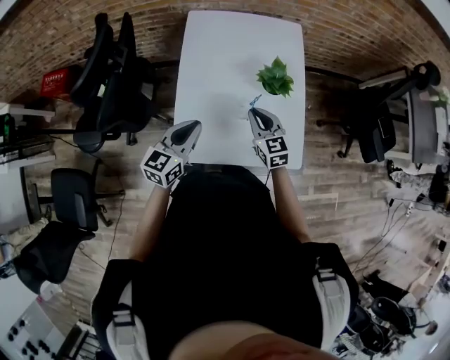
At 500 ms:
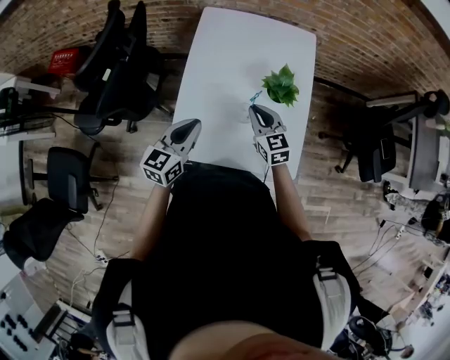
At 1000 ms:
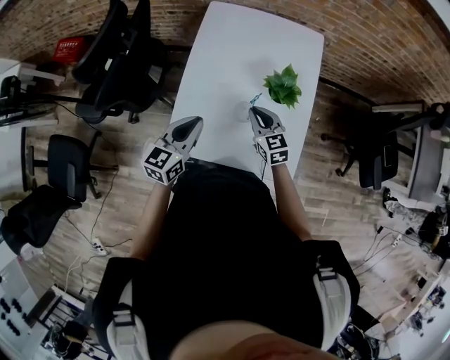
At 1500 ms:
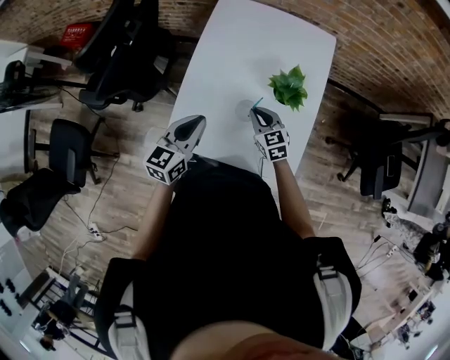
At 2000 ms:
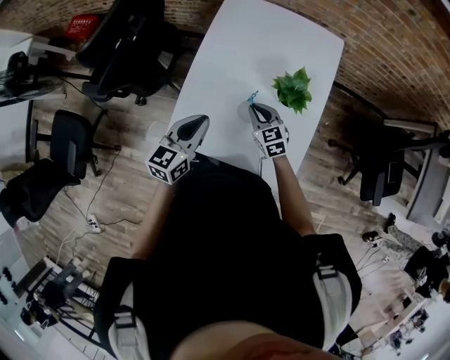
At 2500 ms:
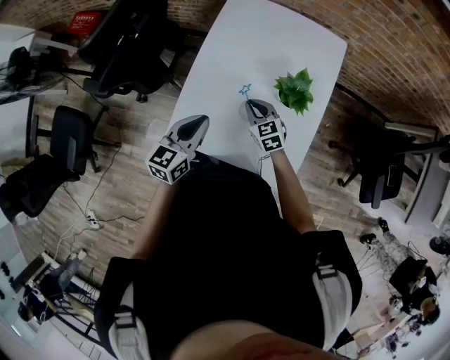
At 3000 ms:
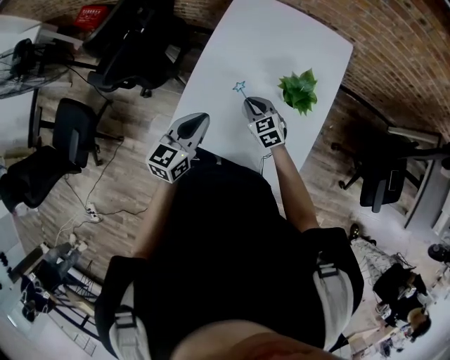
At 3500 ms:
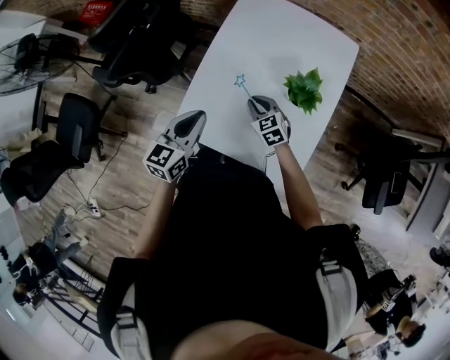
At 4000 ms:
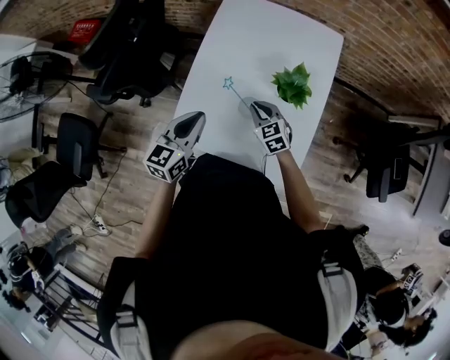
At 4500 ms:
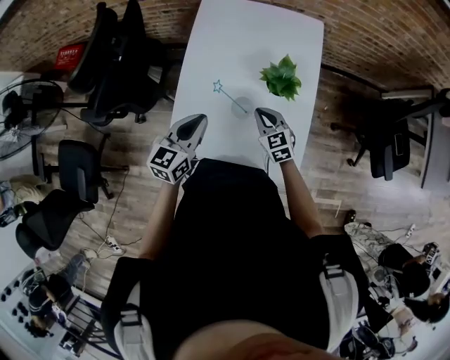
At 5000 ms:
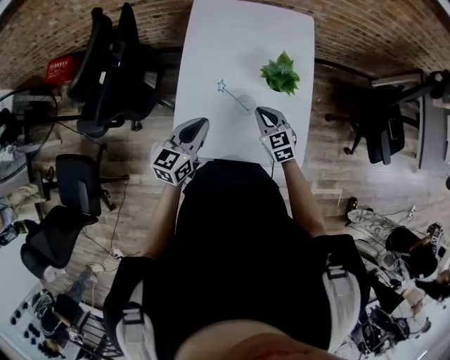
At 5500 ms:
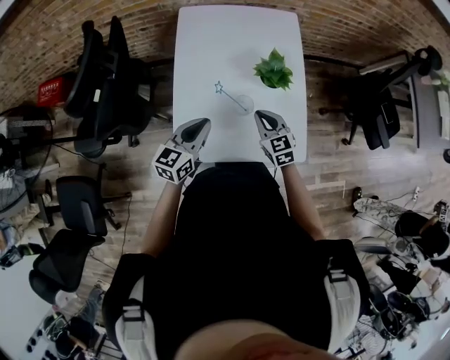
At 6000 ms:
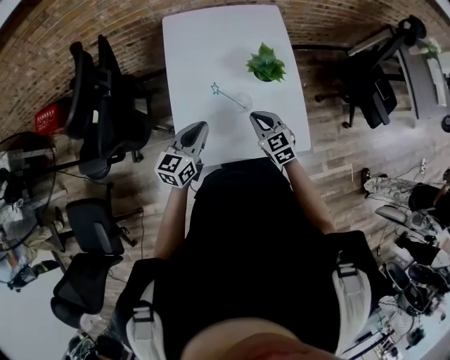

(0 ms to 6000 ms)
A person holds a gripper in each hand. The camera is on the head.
0 ms - 2000 ms: The right gripper is displaced downward by approximately 10 cm, and rotates some 20 degrees.
2000 ms - 4000 ms: The grippers make only small movements.
4000 ms - 6000 ms: The left gripper swivels some 20 degrees. The right gripper is displaced backward and upward by some 10 cm, and changes its angle by approximately 20 degrees.

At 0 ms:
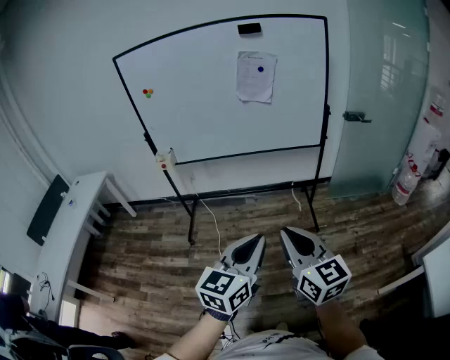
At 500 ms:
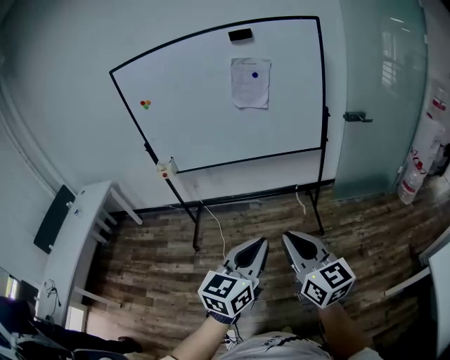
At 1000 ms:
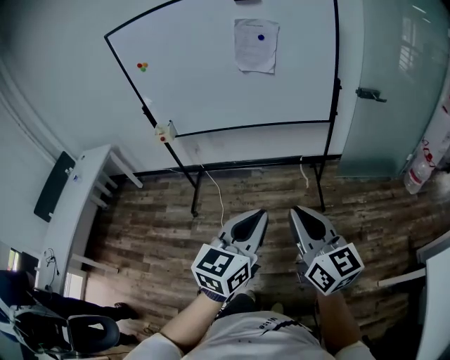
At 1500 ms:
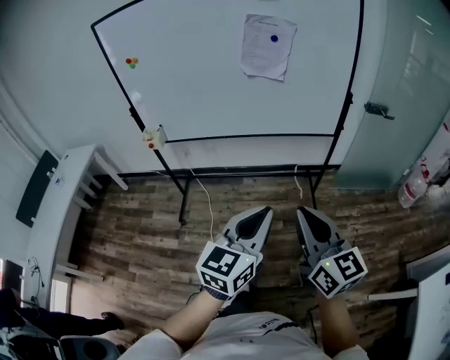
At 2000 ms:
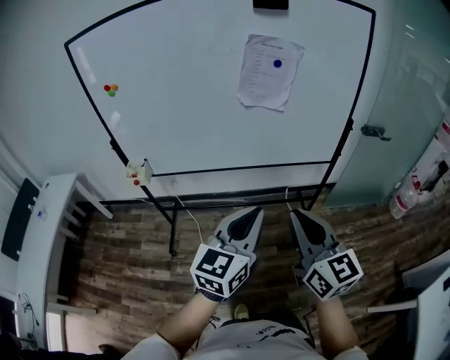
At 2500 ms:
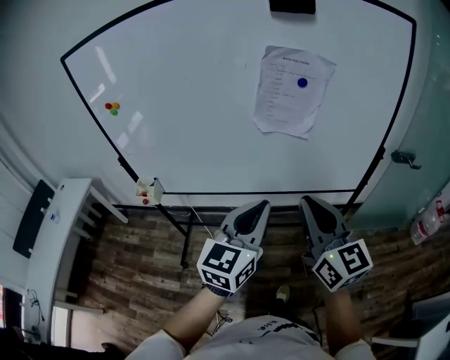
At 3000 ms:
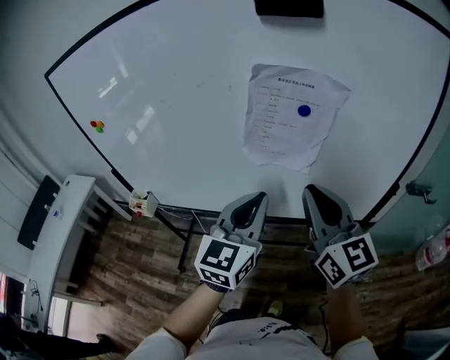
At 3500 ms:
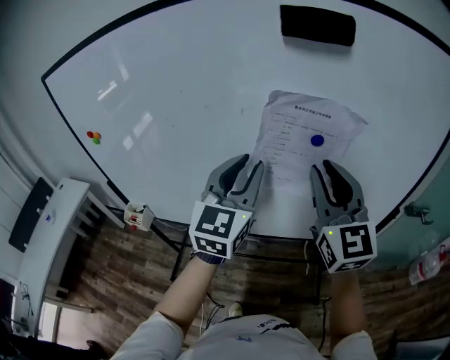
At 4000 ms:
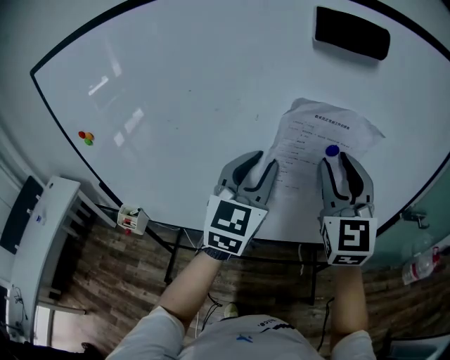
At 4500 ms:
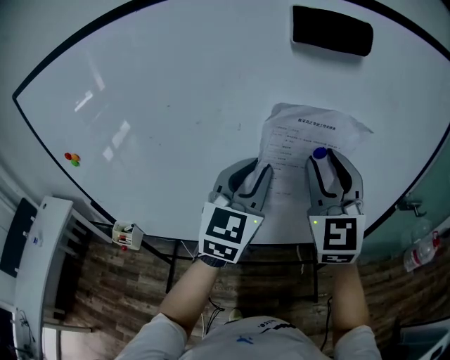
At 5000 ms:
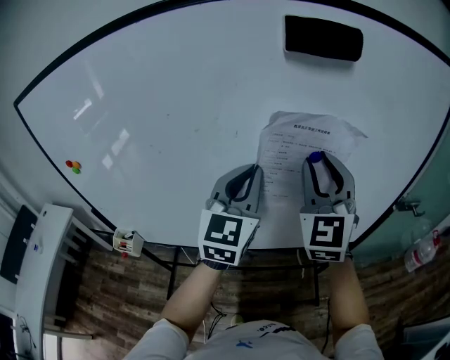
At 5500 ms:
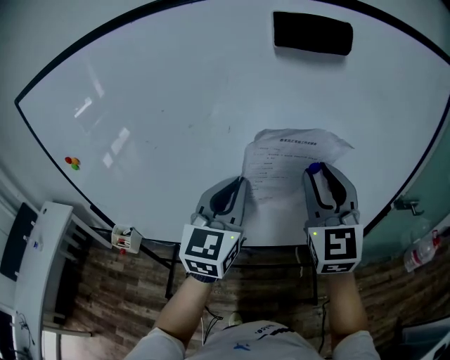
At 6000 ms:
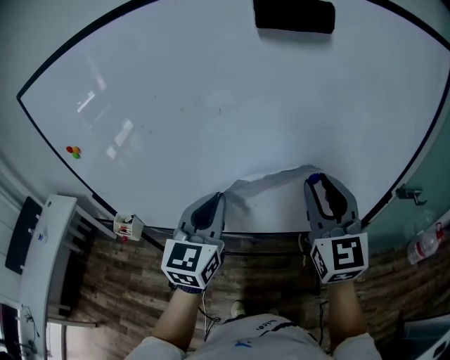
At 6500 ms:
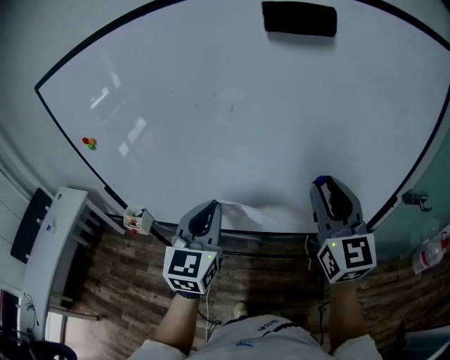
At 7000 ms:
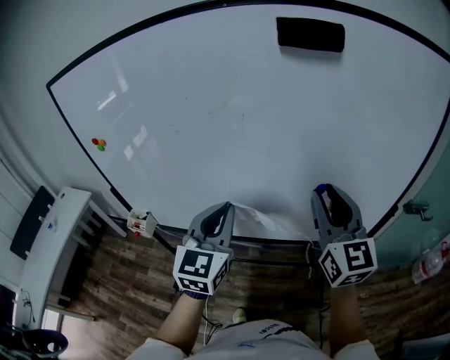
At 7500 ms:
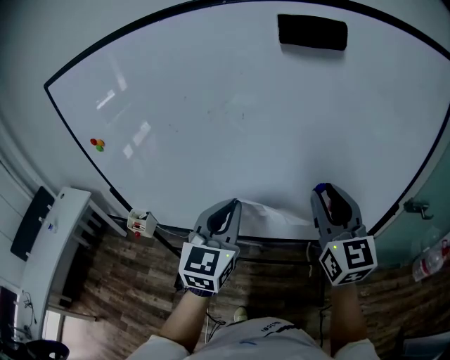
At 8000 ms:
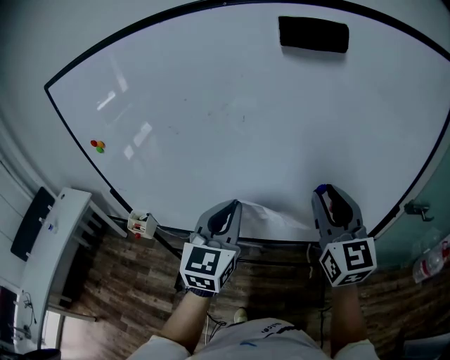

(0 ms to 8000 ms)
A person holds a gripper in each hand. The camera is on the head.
0 ms - 2000 ms: The two grippers go about 35 cm forward.
2000 ms - 4000 ms: The two grippers travel together, forward, roughly 50 cm. The right gripper turns by approximately 30 degrees, and opens. Meanwhile the left gripper rotates some 30 degrees, and opens up.
4000 ms - 6000 ms: The left gripper moves backward and downward, about 10 cm, and closes up. The right gripper travels backward by roughly 5 cm.
6000 ms - 8000 ms: The grippers make only small movements.

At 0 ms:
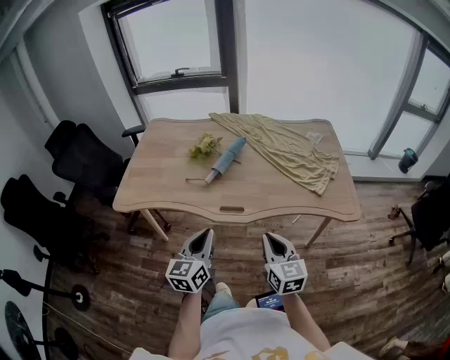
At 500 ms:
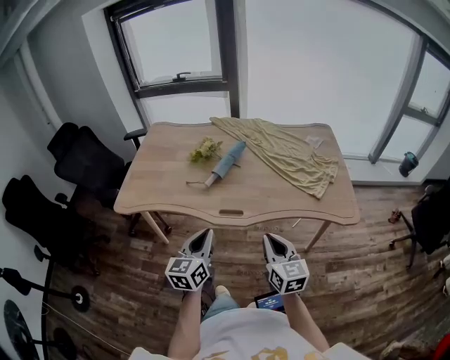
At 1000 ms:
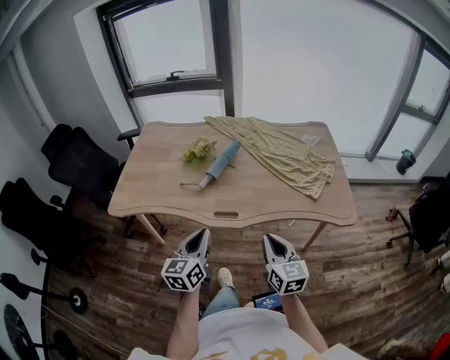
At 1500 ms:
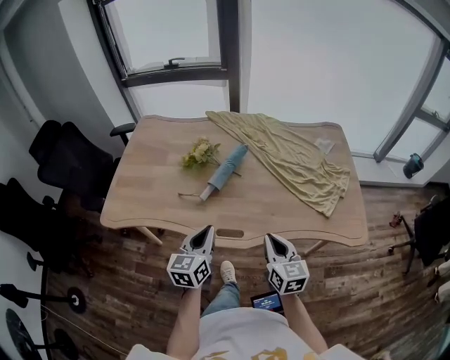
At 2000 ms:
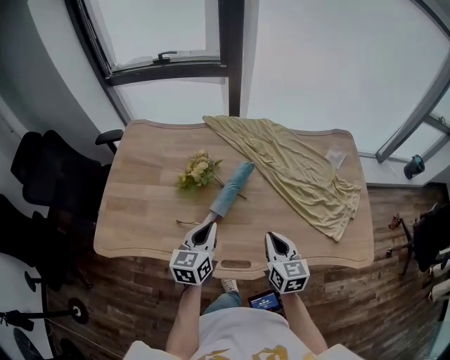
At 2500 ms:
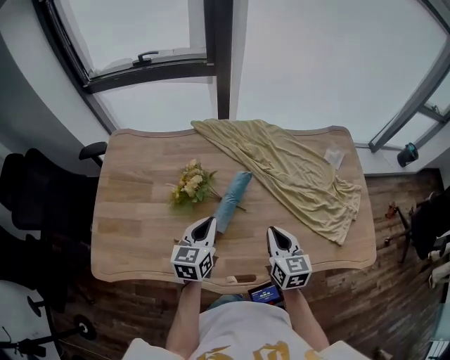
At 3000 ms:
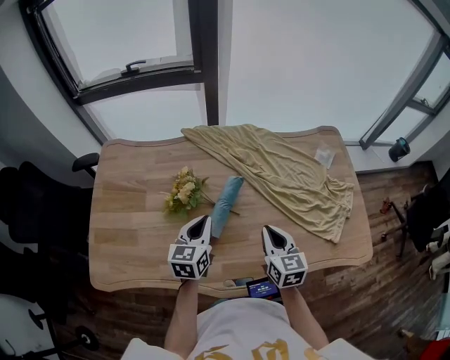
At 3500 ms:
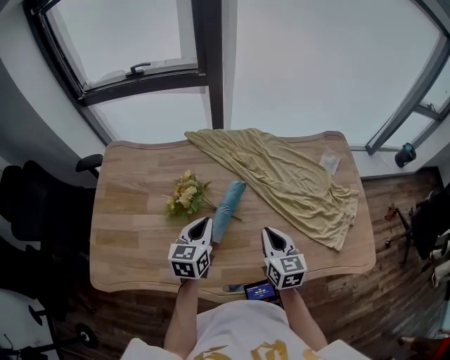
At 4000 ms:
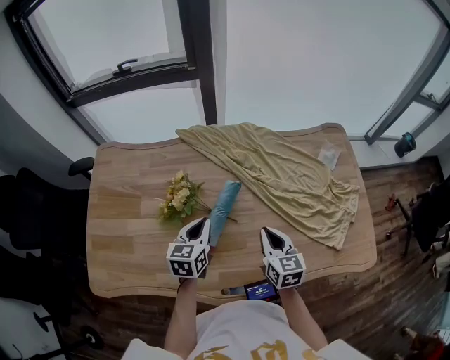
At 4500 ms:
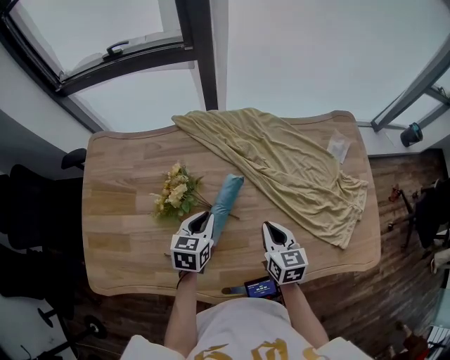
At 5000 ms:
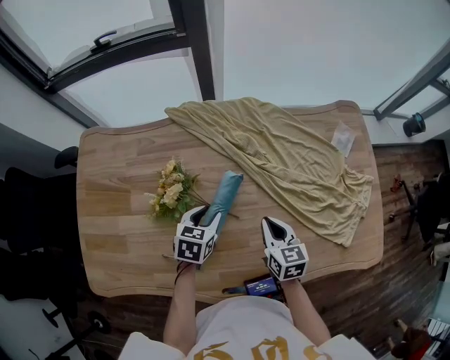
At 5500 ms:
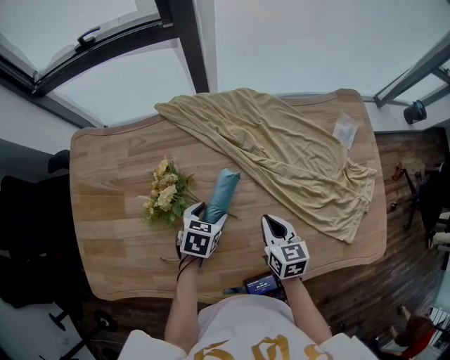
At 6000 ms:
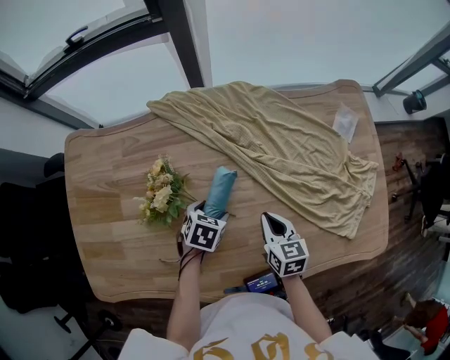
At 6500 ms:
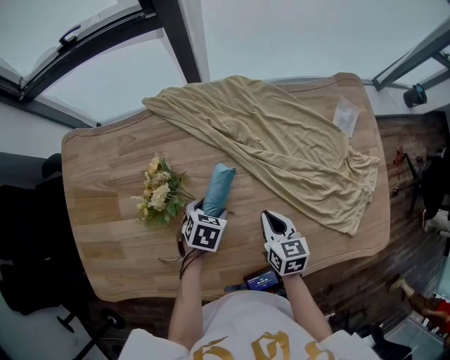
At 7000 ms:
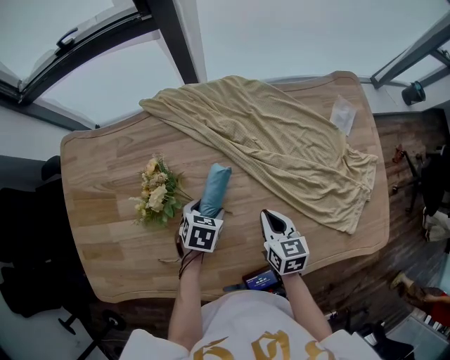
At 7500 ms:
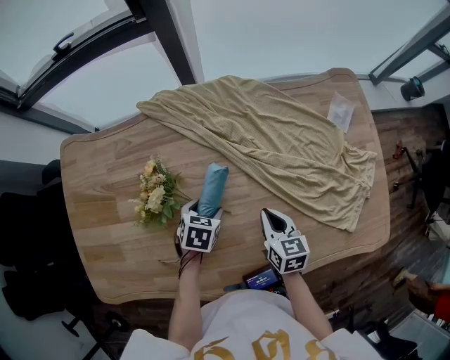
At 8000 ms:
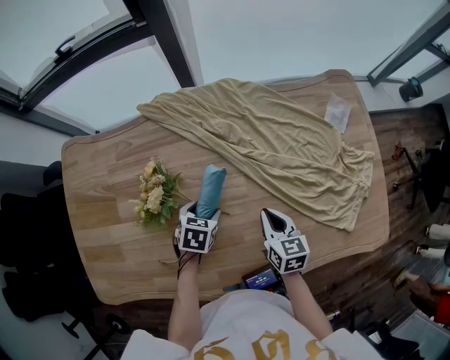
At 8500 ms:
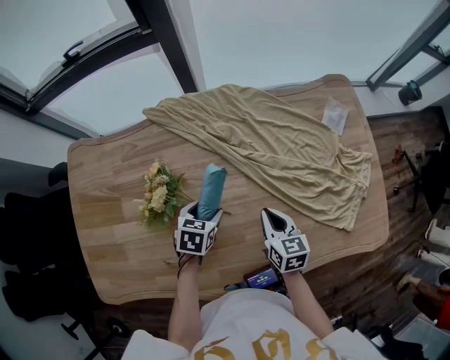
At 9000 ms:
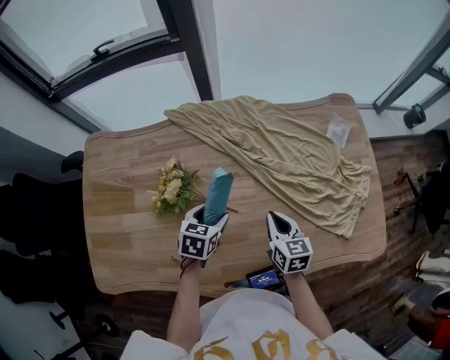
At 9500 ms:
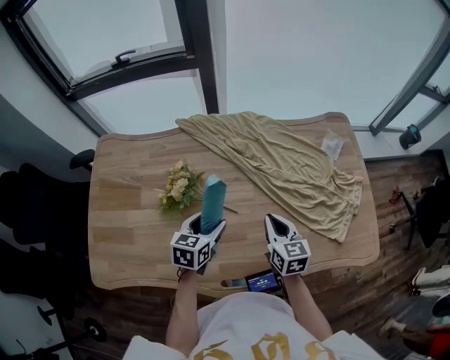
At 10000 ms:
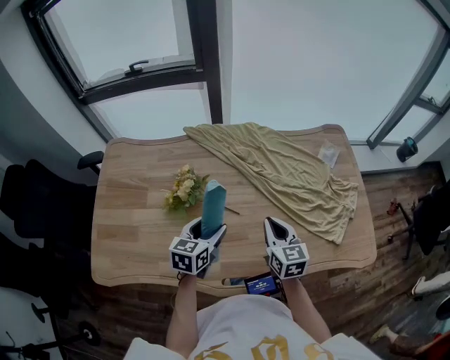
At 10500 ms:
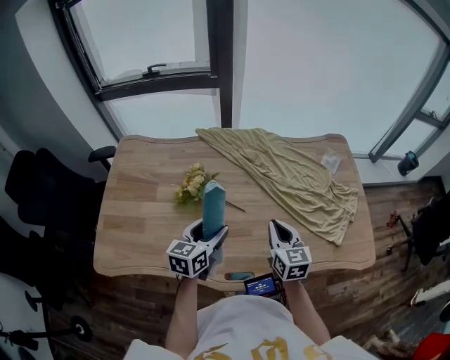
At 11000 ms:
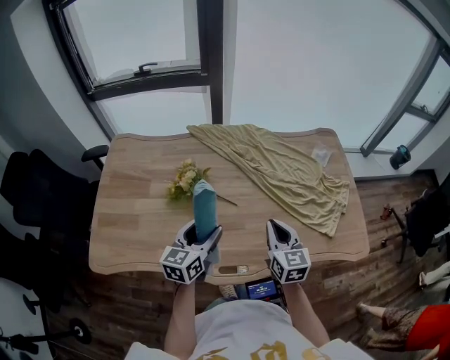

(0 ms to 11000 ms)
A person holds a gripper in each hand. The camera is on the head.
0 ms - 2000 ms: The two grippers go approximately 30 cm forward.
2000 ms - 3500 ms: The two grippers go approximately 10 cm forward.
3500 ms - 5500 ms: The two grippers go approximately 15 cm downward and forward. The left gripper points its fingers approximately 30 degrees further downward, and opens up.
5500 ms - 7500 ms: The grippers stay close to where they were, moving slightly.
7500 ms - 9000 ms: The right gripper shifts roughly 5 cm upward, while the left gripper shifts about 10 cm upward.
9000 ms - 11000 ms: The left gripper goes roughly 20 cm backward and upward, and points its fingers approximately 30 degrees further upward. The right gripper goes approximately 20 cm upward and backward.

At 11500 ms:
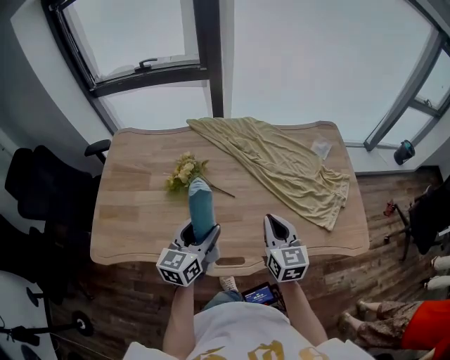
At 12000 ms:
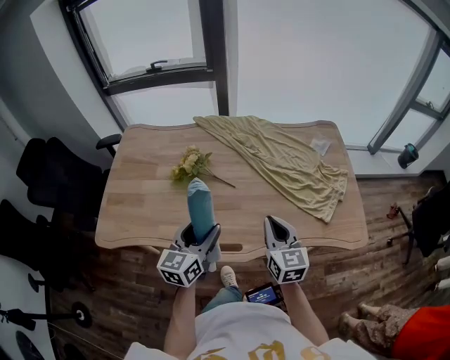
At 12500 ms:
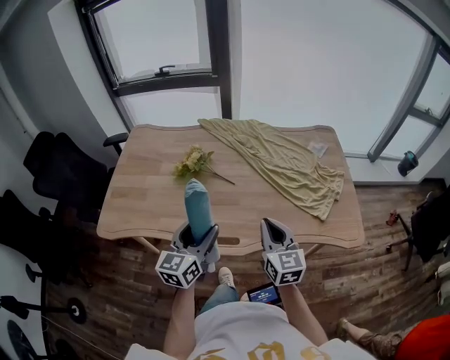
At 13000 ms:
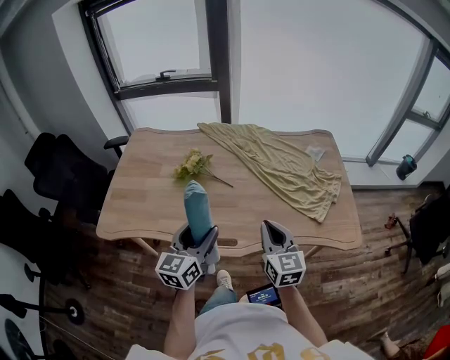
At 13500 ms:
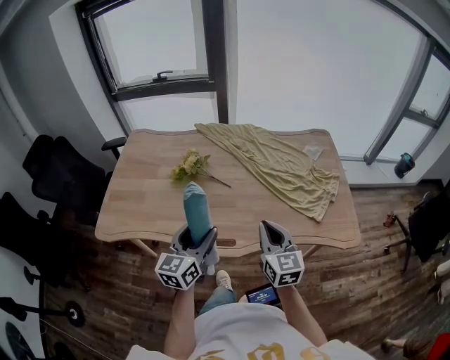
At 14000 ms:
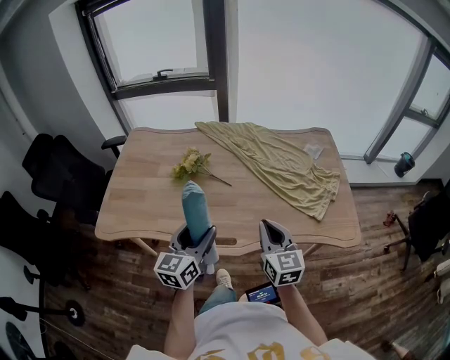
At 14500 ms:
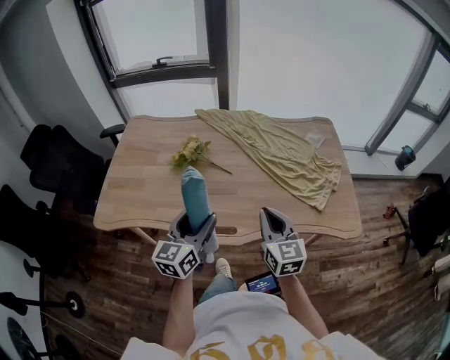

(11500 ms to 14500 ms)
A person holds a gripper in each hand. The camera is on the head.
11500 ms - 13000 ms: Both grippers move backward, roughly 15 cm.
13000 ms - 14500 ms: Both grippers stay about where they are.
